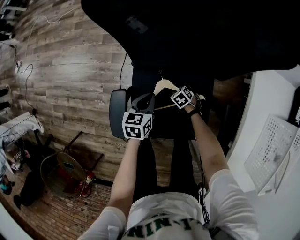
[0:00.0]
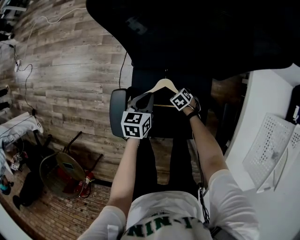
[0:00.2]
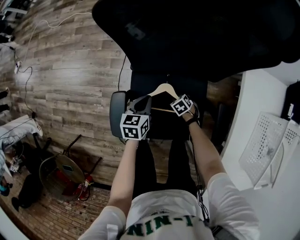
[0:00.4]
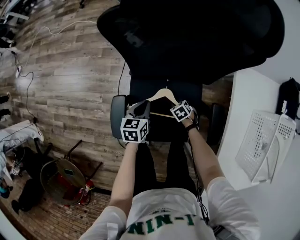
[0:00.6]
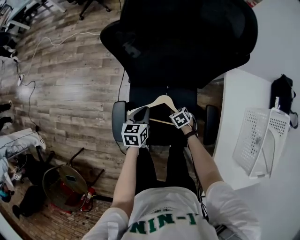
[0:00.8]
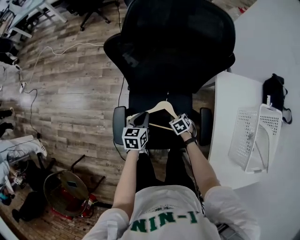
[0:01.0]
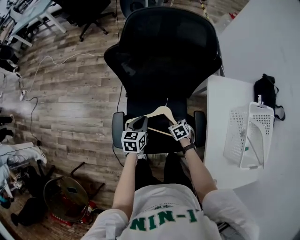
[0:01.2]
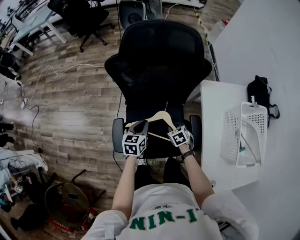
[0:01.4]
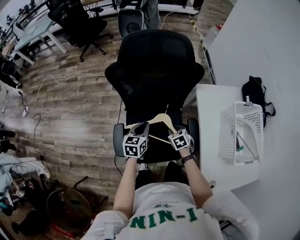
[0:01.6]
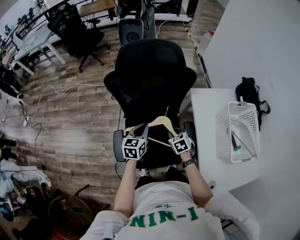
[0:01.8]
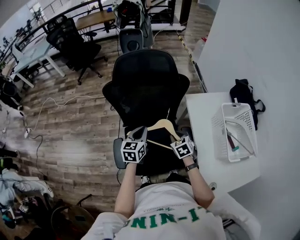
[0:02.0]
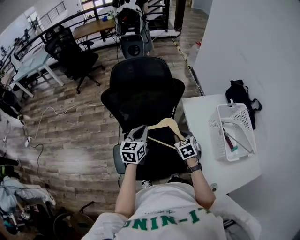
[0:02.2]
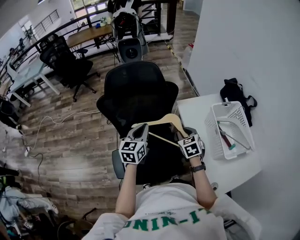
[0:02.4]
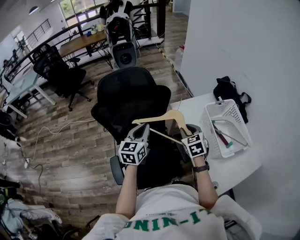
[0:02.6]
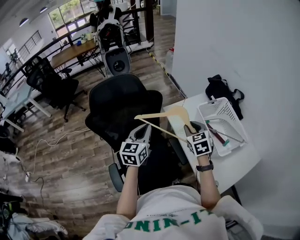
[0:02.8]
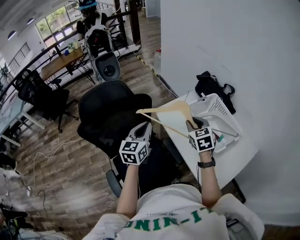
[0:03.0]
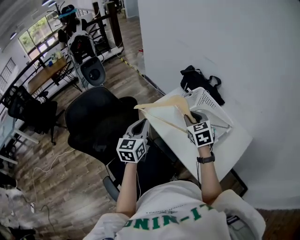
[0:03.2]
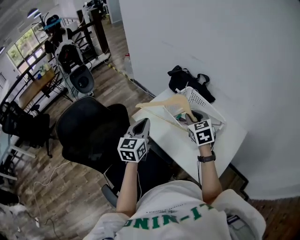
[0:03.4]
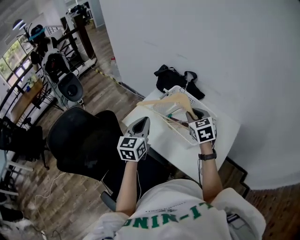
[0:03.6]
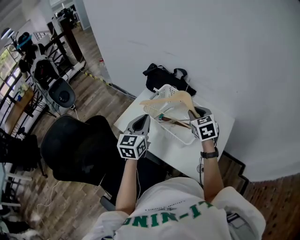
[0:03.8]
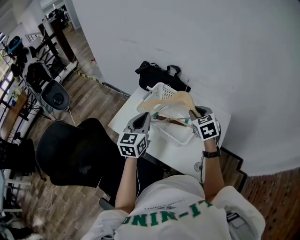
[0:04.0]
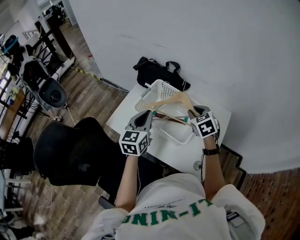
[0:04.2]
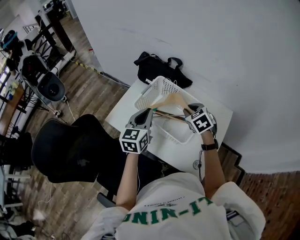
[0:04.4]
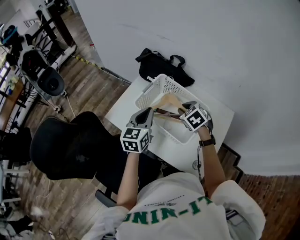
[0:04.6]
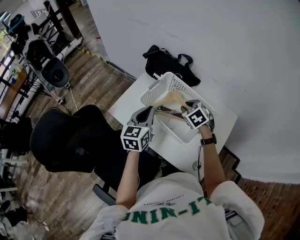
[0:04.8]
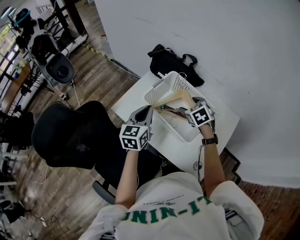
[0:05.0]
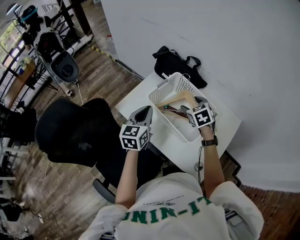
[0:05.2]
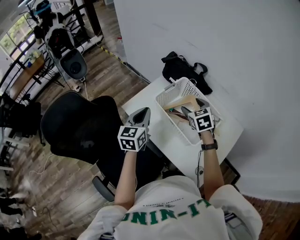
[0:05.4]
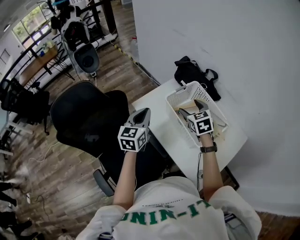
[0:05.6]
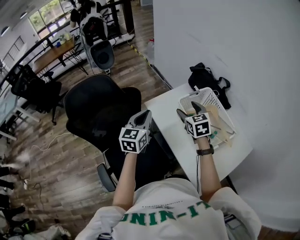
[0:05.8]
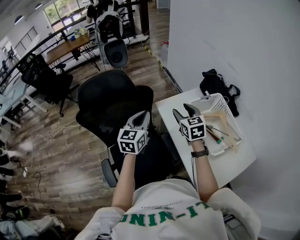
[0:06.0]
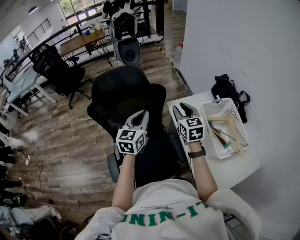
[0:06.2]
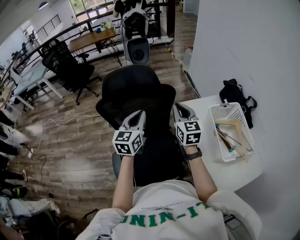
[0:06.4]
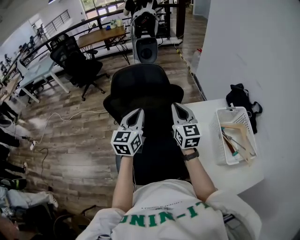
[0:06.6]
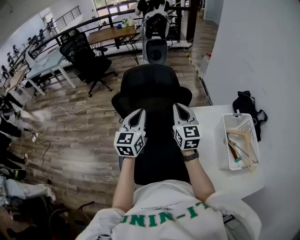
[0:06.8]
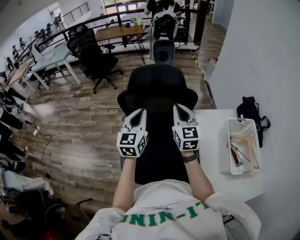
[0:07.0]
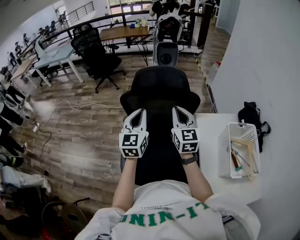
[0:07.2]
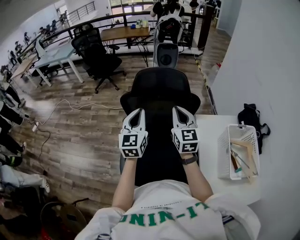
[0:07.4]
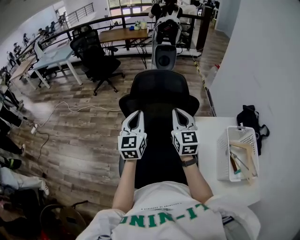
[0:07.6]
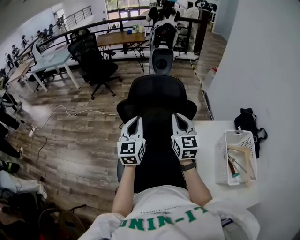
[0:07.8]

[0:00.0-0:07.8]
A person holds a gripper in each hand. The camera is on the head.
0:00.0 to 0:01.6: Both grippers travel together upward, about 30 cm. The right gripper rotates roughly 30 degrees.
0:01.6 to 0:03.2: The left gripper ends up about 35 cm from where it was, and rotates about 40 degrees, while the right gripper shifts some 35 cm upward, and points its fingers about 30 degrees further upward.
0:03.2 to 0:04.6: The left gripper goes roughly 25 cm to the right and forward, and changes its angle by approximately 20 degrees, while the right gripper moves to the right, downward and forward, some 20 cm, and changes its angle by approximately 20 degrees.
0:04.6 to 0:06.2: The right gripper changes place by some 40 cm, angles its fingers upward, by approximately 30 degrees, and opens, then closes again; the left gripper changes place by approximately 35 cm, and turns by approximately 40 degrees.
0:06.2 to 0:07.8: The grippers both shift to the left by roughly 20 cm. The right gripper closes its fingers, while the left gripper rotates roughly 30 degrees.

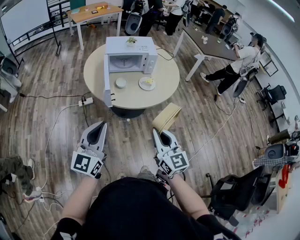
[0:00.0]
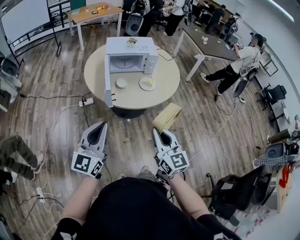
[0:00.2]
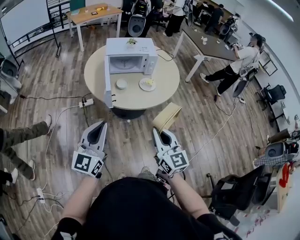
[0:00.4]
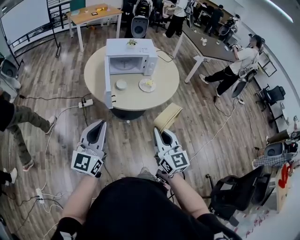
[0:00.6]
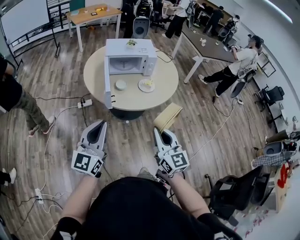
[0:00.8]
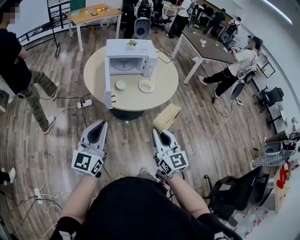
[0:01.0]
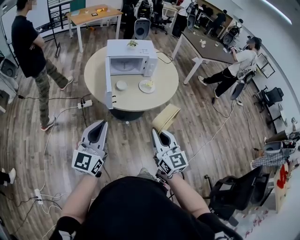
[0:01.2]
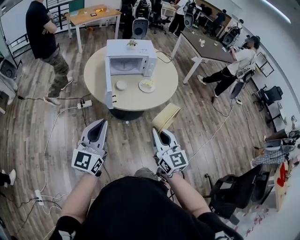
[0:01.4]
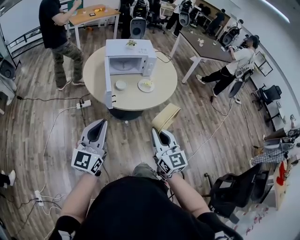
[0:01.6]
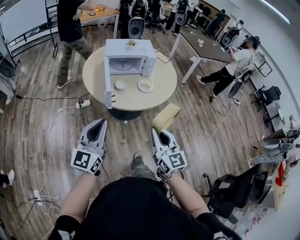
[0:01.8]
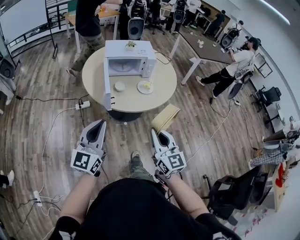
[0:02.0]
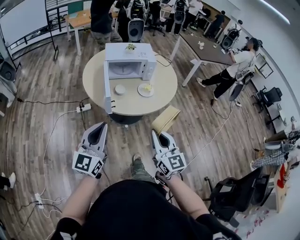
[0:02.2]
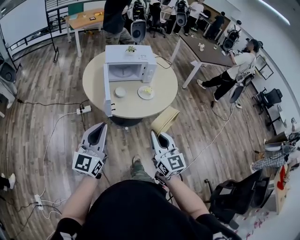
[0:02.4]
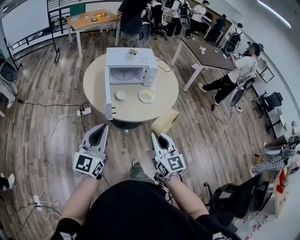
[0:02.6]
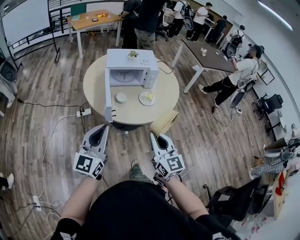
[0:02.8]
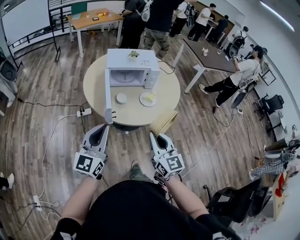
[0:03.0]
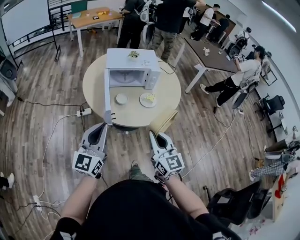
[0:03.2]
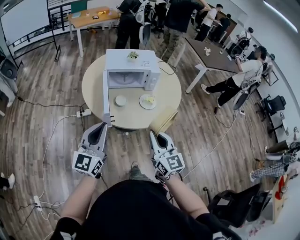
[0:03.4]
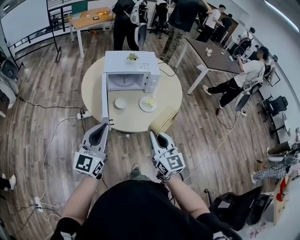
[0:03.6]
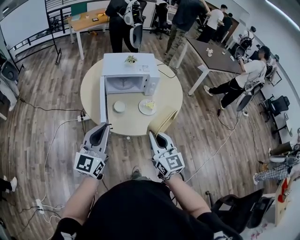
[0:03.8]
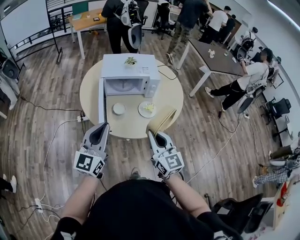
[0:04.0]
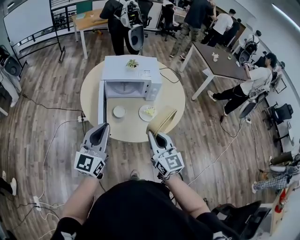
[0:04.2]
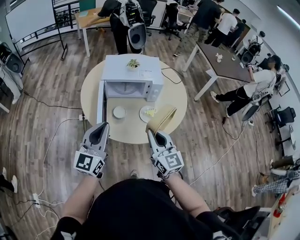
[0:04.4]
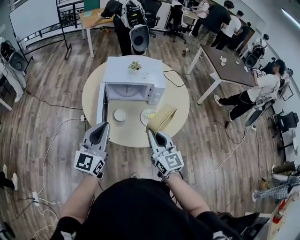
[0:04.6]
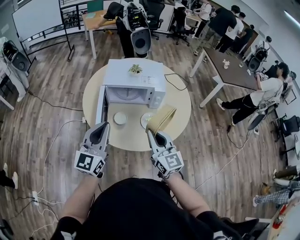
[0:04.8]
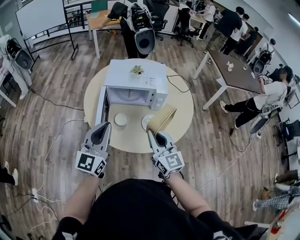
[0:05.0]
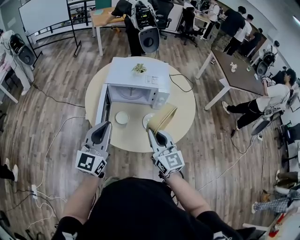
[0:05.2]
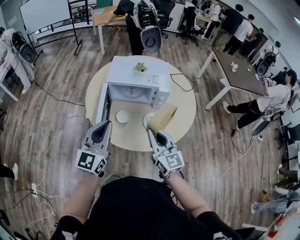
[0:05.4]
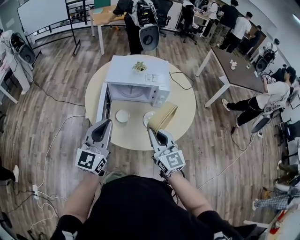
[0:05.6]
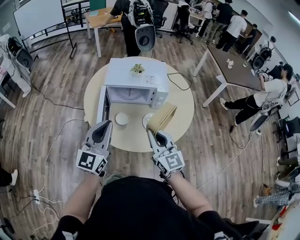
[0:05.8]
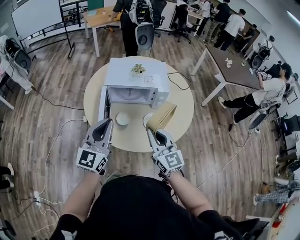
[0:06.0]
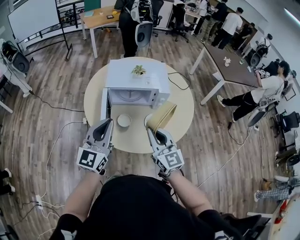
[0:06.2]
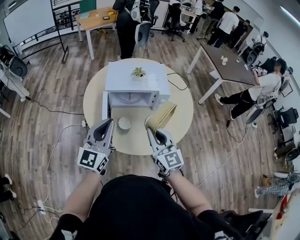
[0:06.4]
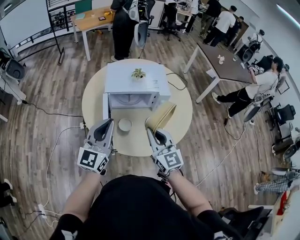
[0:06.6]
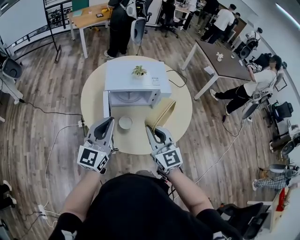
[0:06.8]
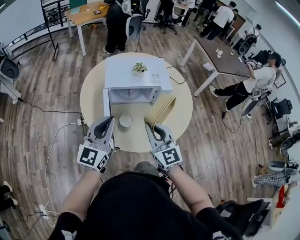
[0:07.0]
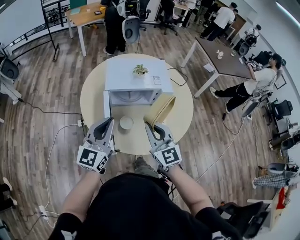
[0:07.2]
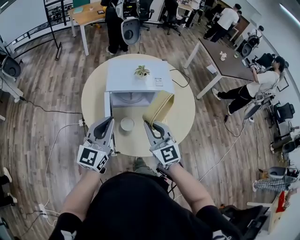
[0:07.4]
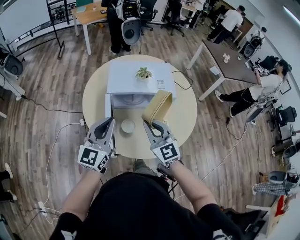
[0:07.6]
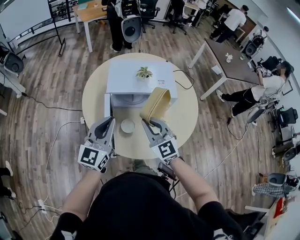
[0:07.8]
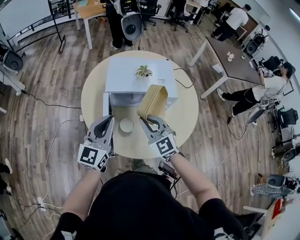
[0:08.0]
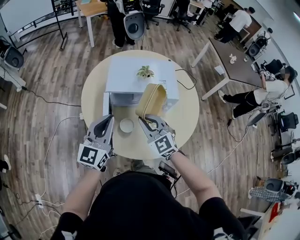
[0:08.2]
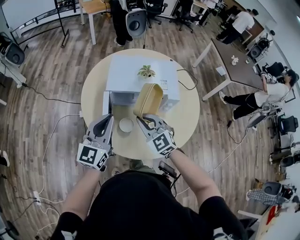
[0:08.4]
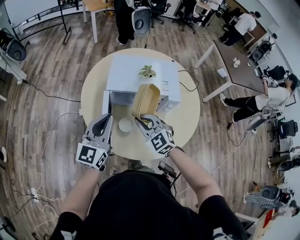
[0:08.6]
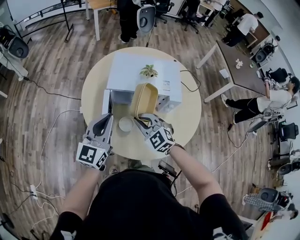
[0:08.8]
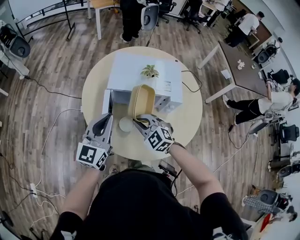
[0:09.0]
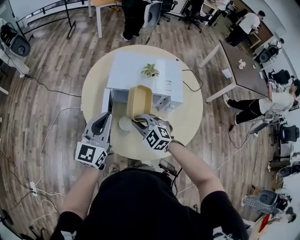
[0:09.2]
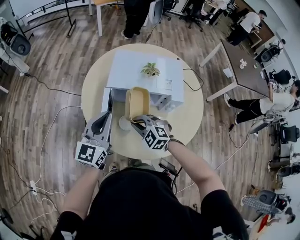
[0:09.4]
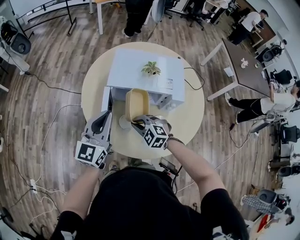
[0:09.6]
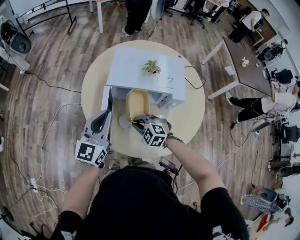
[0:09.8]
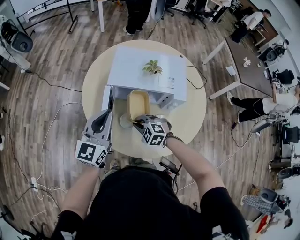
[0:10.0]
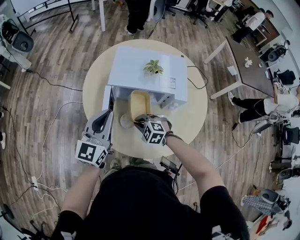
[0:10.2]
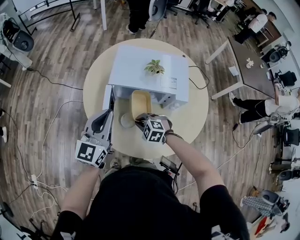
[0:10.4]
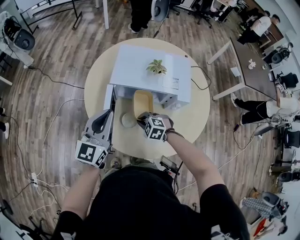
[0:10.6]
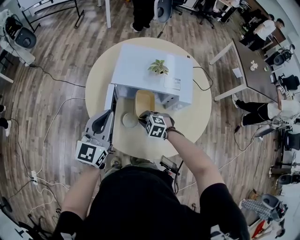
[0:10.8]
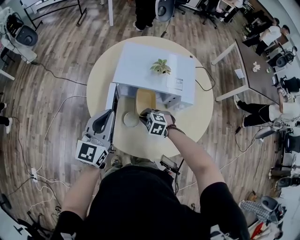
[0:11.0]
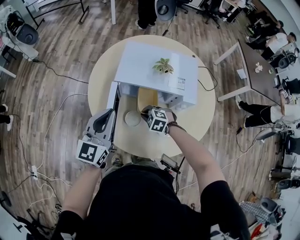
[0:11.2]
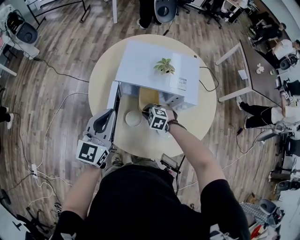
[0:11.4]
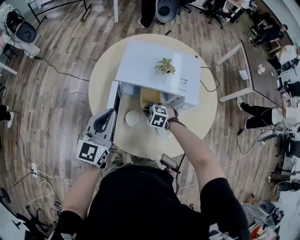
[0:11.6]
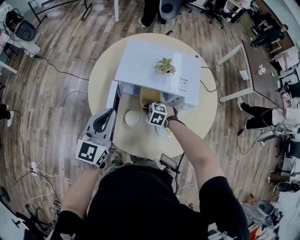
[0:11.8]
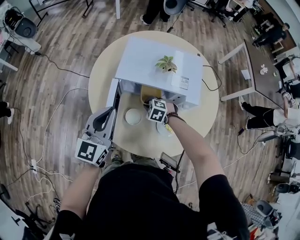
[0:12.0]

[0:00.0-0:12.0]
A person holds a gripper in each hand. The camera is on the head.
0:00.0 to 0:01.6: The grippers move only a little.
0:01.6 to 0:03.0: The grippers both shift forward by about 10 cm.
0:03.0 to 0:04.4: The grippers both shift forward by approximately 15 cm.
0:04.4 to 0:06.0: Both grippers move forward, some 5 cm.
0:06.0 to 0:07.6: Both grippers move forward and to the left, some 10 cm.
0:07.6 to 0:09.0: The right gripper is displaced downward and forward by some 10 cm, and rotates about 40 degrees.
0:09.0 to 0:10.4: The right gripper moves downward, about 15 cm, and rotates approximately 30 degrees.
0:10.4 to 0:12.0: The right gripper shifts roughly 10 cm forward and downward.

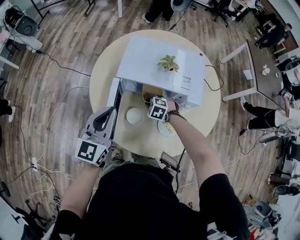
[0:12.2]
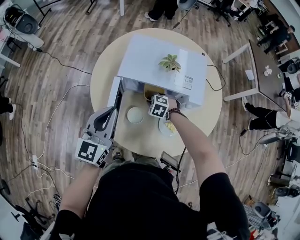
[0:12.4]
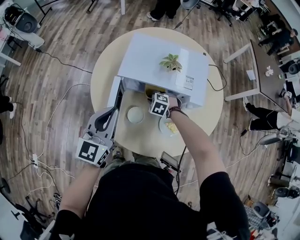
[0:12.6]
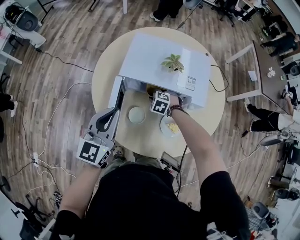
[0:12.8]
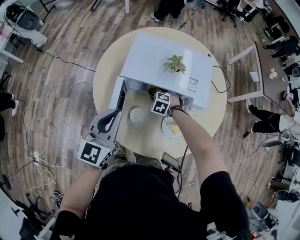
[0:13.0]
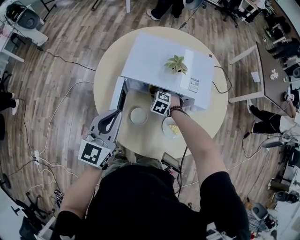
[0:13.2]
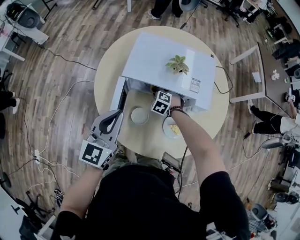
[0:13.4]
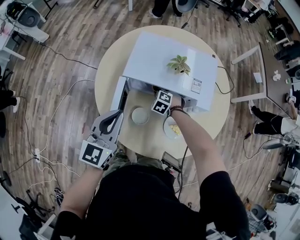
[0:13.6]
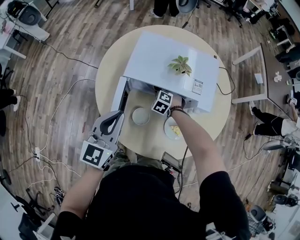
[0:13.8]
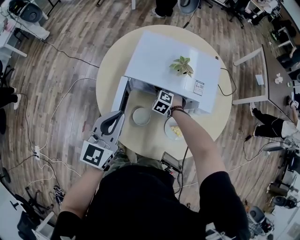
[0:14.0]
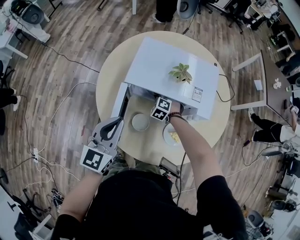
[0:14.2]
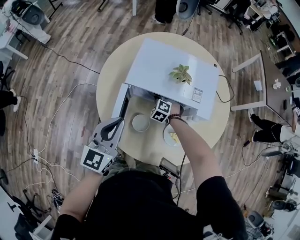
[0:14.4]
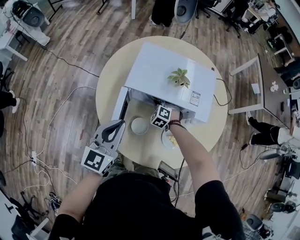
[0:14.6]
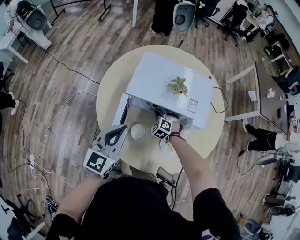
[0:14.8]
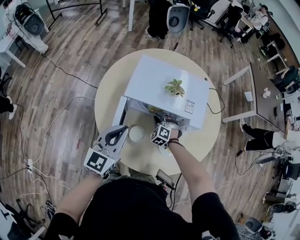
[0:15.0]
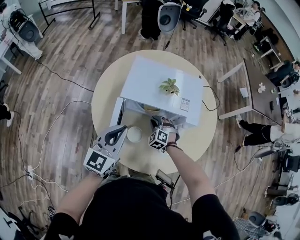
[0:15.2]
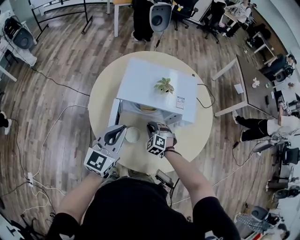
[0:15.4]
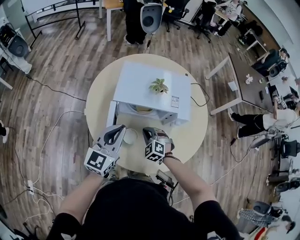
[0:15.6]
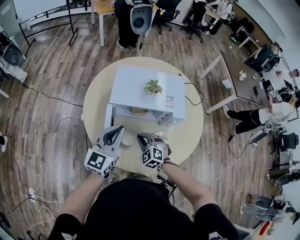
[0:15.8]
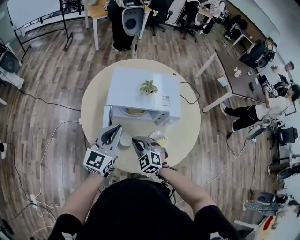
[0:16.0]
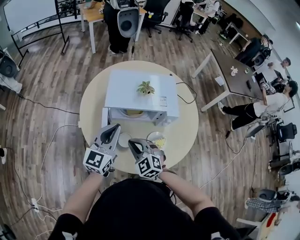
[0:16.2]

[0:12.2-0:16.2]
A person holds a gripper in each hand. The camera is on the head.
0:12.2 to 0:13.6: The right gripper shifts about 5 cm forward.
0:13.6 to 0:14.8: The grippers make only small movements.
0:14.8 to 0:16.2: The right gripper shifts some 25 cm upward and backward, and turns by about 30 degrees.
